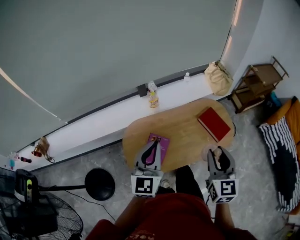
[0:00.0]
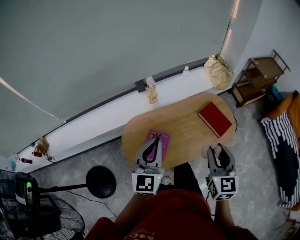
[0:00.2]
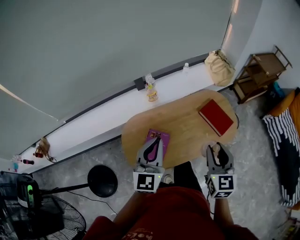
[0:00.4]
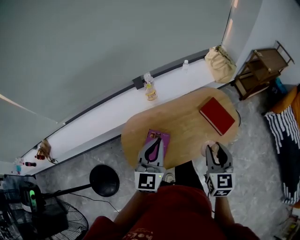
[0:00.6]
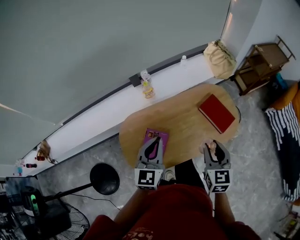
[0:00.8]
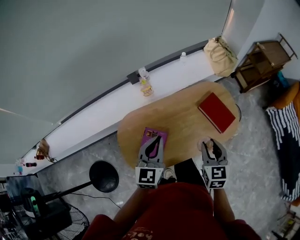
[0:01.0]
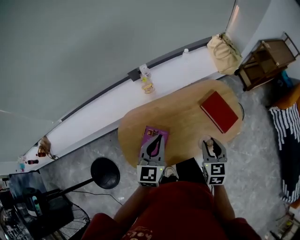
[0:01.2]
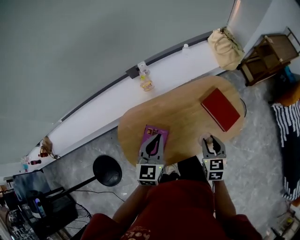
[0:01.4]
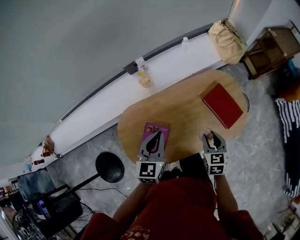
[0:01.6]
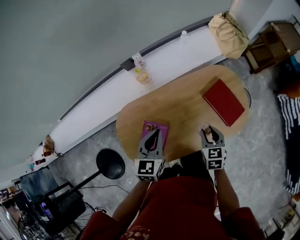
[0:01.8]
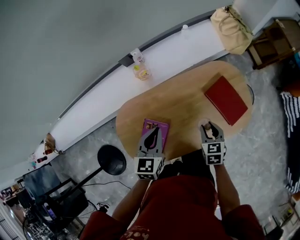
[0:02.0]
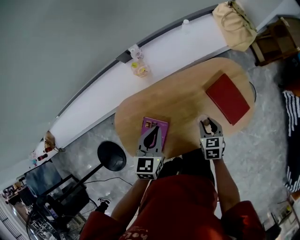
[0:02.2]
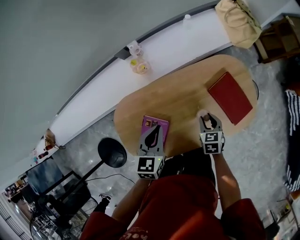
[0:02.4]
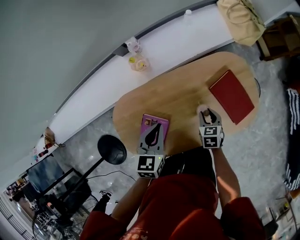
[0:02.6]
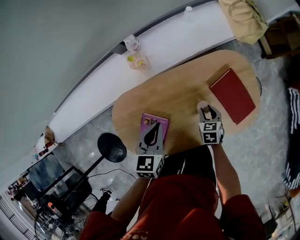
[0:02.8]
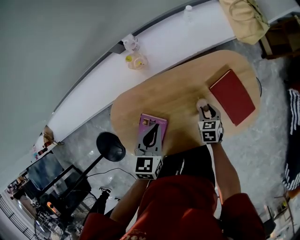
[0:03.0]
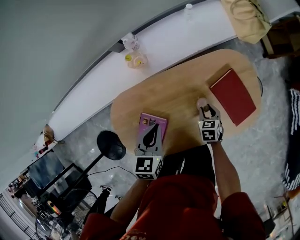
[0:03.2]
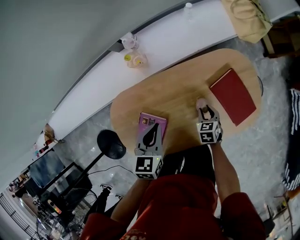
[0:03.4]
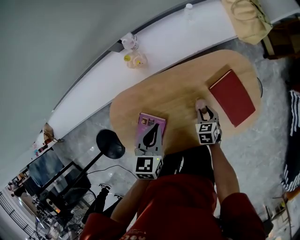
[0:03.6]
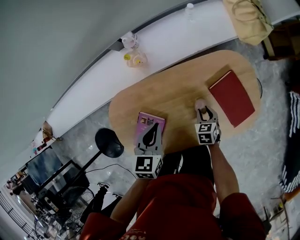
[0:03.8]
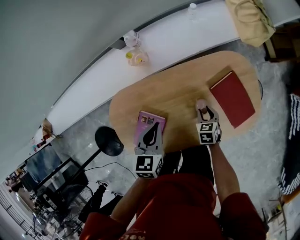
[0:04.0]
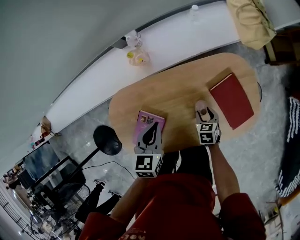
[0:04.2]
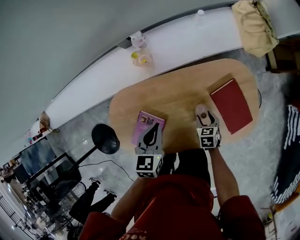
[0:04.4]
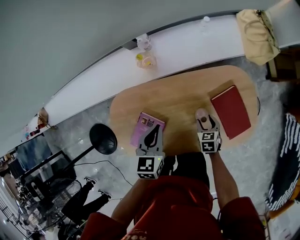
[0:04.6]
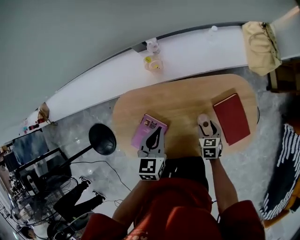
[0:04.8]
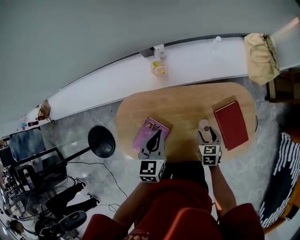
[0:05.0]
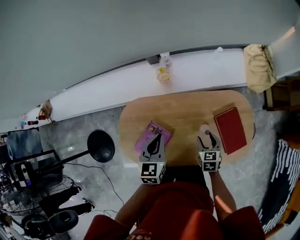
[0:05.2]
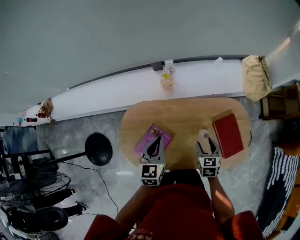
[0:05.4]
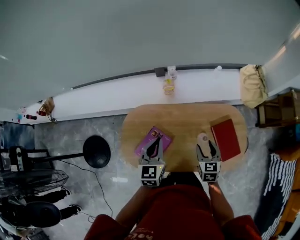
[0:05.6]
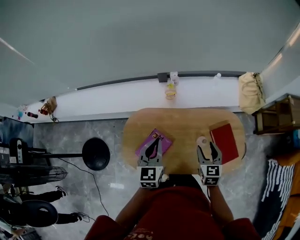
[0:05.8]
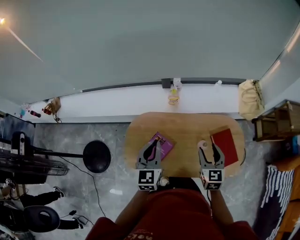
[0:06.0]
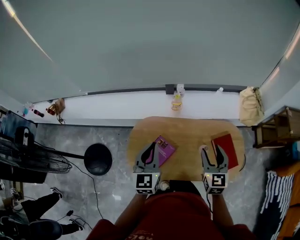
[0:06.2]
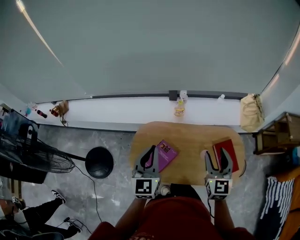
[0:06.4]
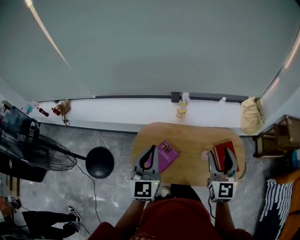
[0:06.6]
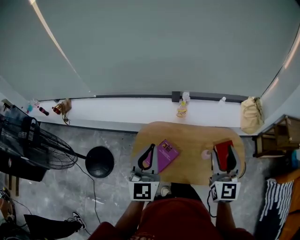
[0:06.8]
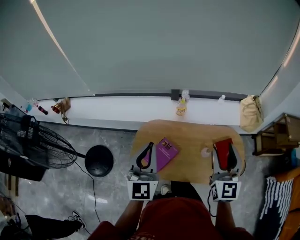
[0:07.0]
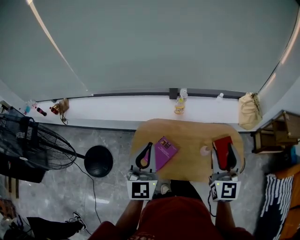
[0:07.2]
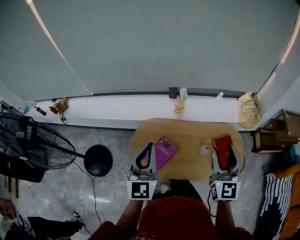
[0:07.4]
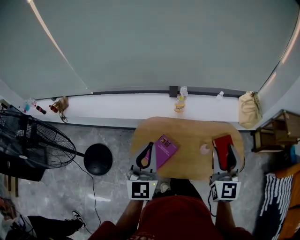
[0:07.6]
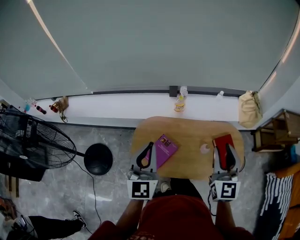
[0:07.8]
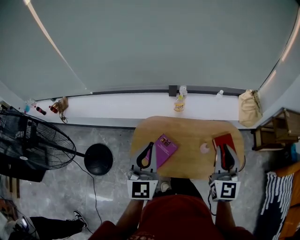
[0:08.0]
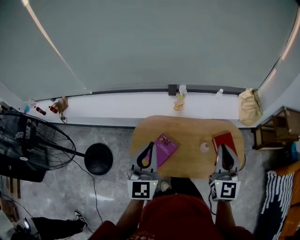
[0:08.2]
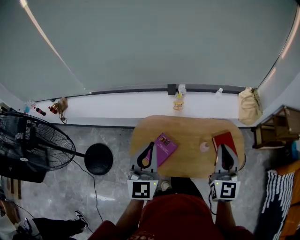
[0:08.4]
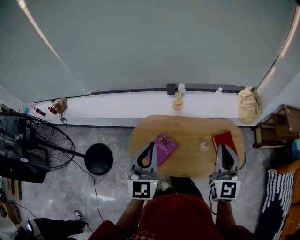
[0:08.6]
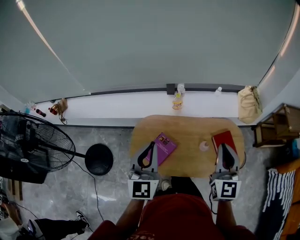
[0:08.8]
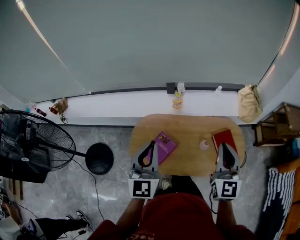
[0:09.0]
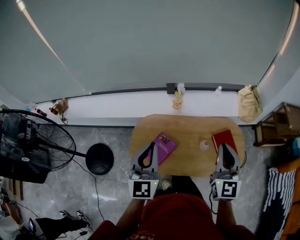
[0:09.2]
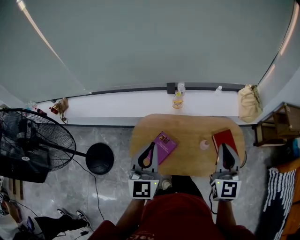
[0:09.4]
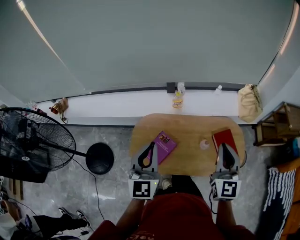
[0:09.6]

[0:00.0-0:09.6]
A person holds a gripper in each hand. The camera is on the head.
0:00.0 to 0:01.6: Both grippers travel together downward and forward, some 30 cm. The right gripper rotates about 30 degrees; the left gripper swivels roughly 30 degrees.
0:01.6 to 0:03.2: The left gripper heads downward and forward, covering approximately 15 cm. Meanwhile the right gripper moves downward and forward, approximately 25 cm.
0:03.2 to 0:04.8: The right gripper opens.
0:04.8 to 0:06.4: The right gripper heads upward, covering roughly 40 cm, and tilts its fingers approximately 50 degrees upward. Meanwhile the left gripper heads upward, backward and to the left, covering roughly 35 cm, and points its fingers roughly 30 degrees further upward.
0:06.4 to 0:08.0: The right gripper shifts roughly 10 cm upward and backward, and closes its fingers. Meanwhile the left gripper travels backward by approximately 5 cm.
0:08.0 to 0:09.6: The grippers stay close to where they were, moving slightly.

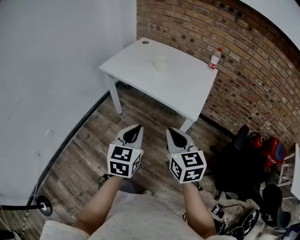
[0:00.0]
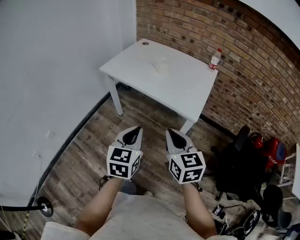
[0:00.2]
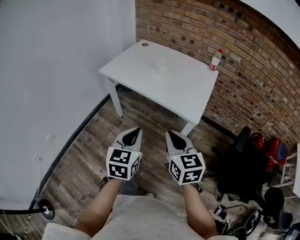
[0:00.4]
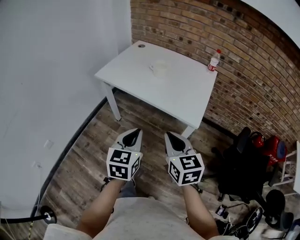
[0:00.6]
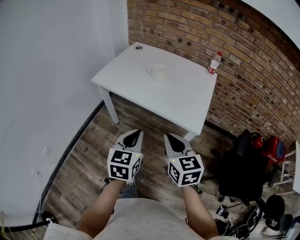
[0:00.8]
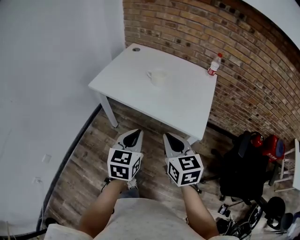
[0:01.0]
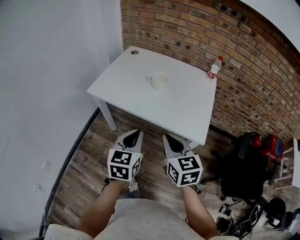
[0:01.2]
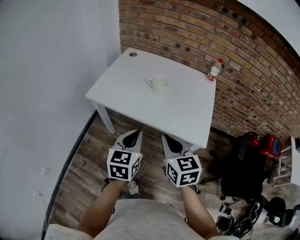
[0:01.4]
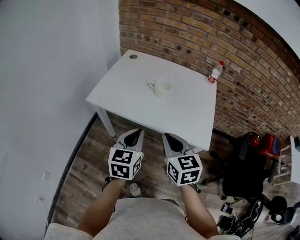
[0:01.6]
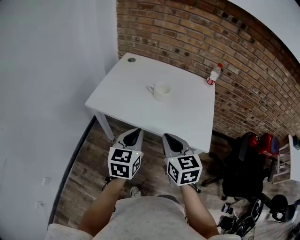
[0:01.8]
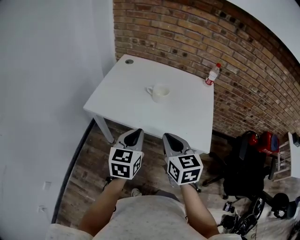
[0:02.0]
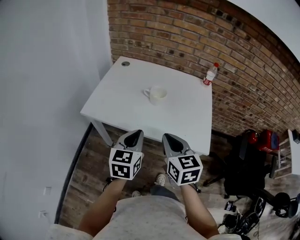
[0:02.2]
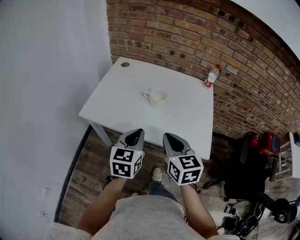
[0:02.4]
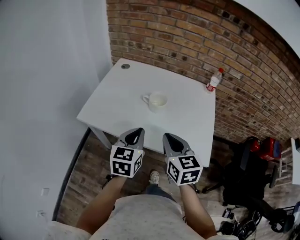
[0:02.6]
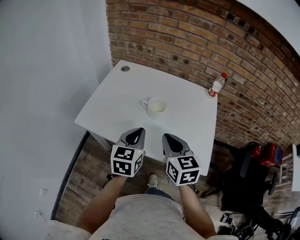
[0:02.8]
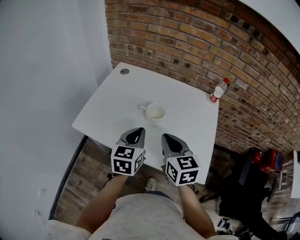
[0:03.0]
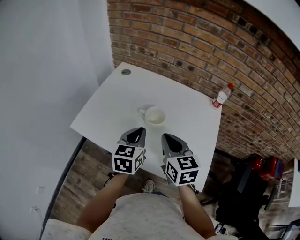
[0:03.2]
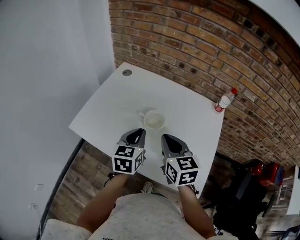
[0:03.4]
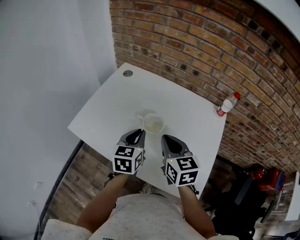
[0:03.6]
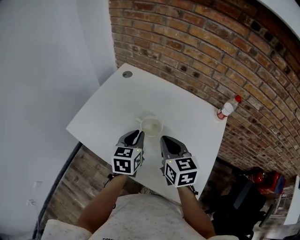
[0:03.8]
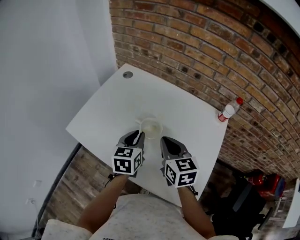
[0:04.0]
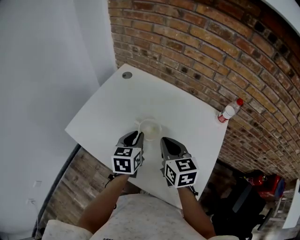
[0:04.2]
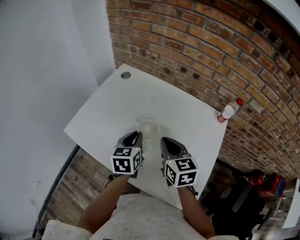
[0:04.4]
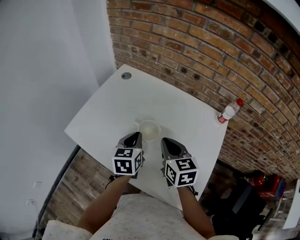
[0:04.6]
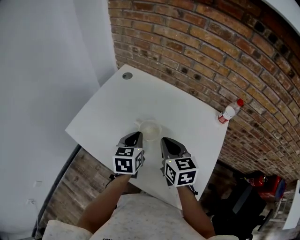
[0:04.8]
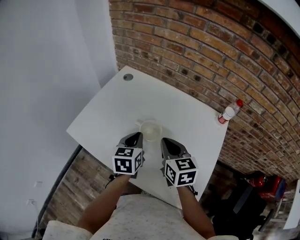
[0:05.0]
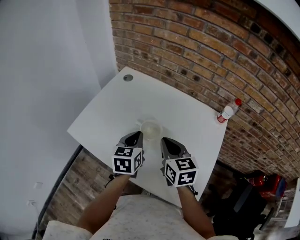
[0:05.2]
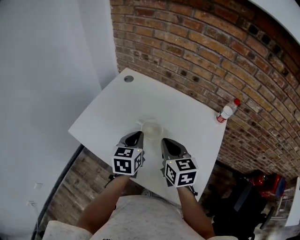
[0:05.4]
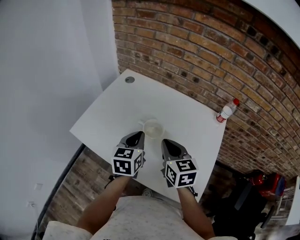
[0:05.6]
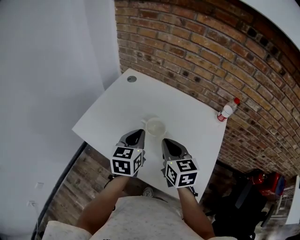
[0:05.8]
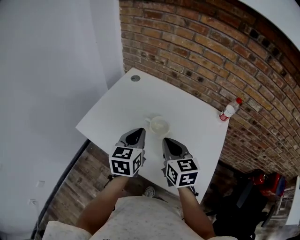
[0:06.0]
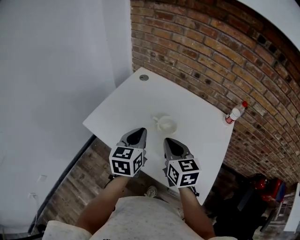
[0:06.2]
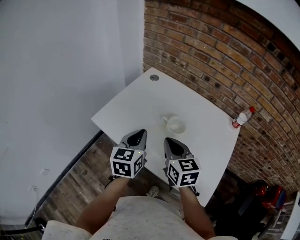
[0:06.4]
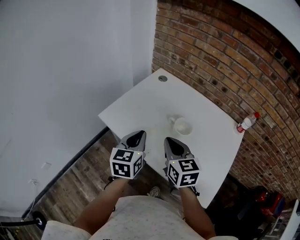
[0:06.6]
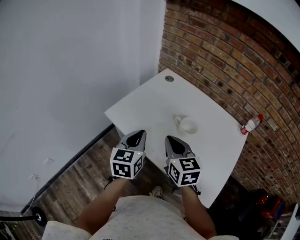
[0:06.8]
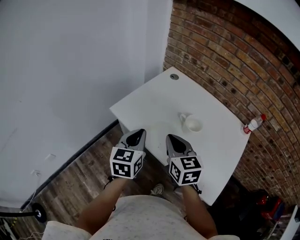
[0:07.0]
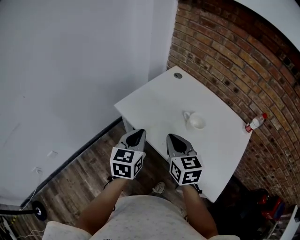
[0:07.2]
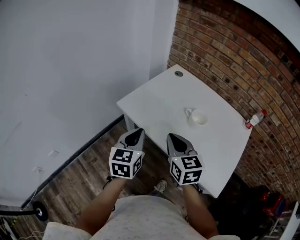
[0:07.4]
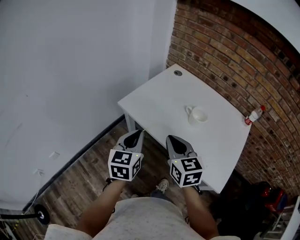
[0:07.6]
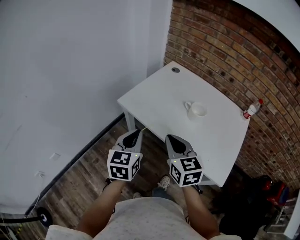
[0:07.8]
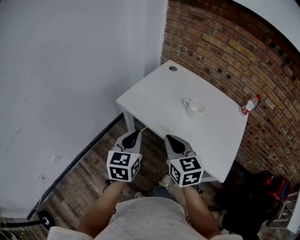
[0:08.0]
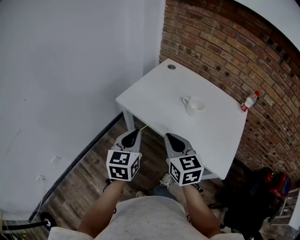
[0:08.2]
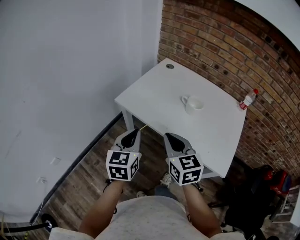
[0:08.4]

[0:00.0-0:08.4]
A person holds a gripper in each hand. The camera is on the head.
0:00.0 to 0:01.4: The left gripper moves forward, roughly 20 cm. The right gripper travels forward and to the left by roughly 20 cm.
0:01.4 to 0:02.8: Both grippers travel together forward, some 15 cm.
0:02.8 to 0:04.2: The right gripper travels forward by some 15 cm, while the left gripper is displaced forward and downward by some 15 cm.
0:04.2 to 0:05.6: The grippers make only small movements.
0:05.6 to 0:07.0: The left gripper shifts about 20 cm to the left and backward; the right gripper heads to the left, covering about 15 cm.
0:07.0 to 0:08.4: The grippers both shift backward and to the left by roughly 10 cm.

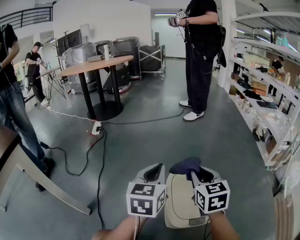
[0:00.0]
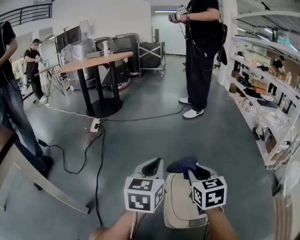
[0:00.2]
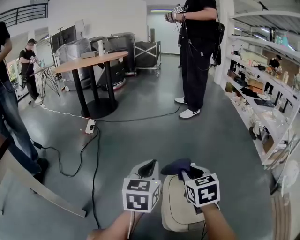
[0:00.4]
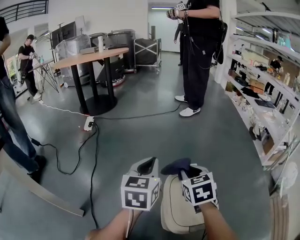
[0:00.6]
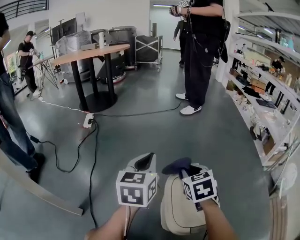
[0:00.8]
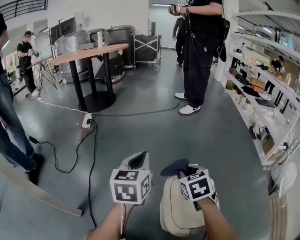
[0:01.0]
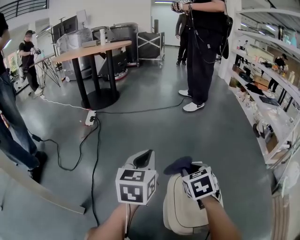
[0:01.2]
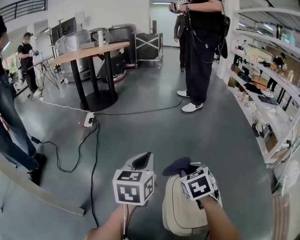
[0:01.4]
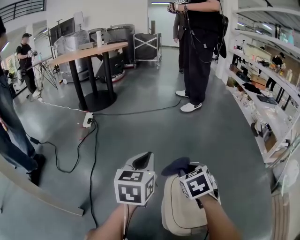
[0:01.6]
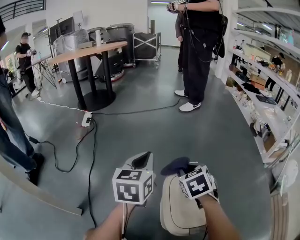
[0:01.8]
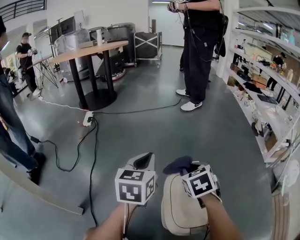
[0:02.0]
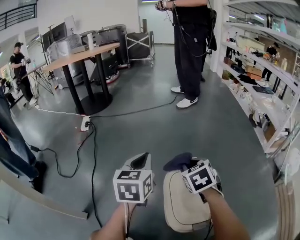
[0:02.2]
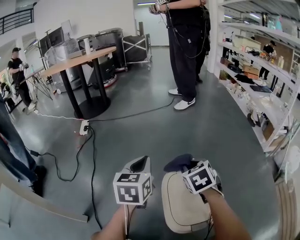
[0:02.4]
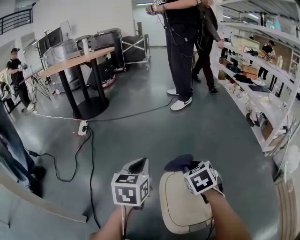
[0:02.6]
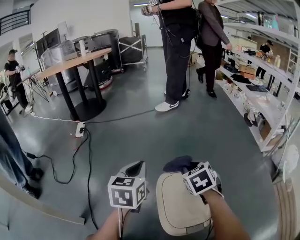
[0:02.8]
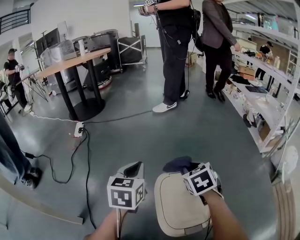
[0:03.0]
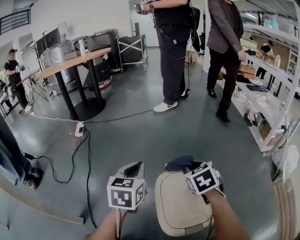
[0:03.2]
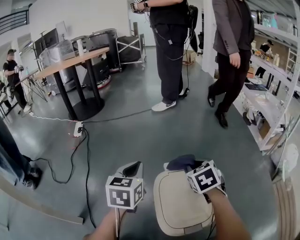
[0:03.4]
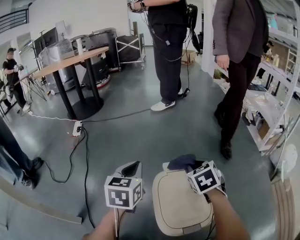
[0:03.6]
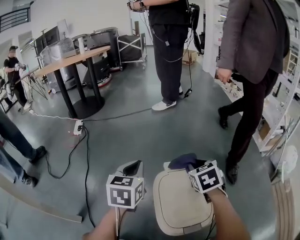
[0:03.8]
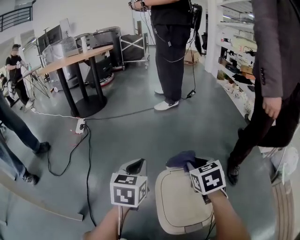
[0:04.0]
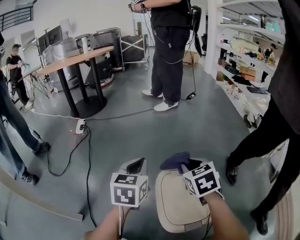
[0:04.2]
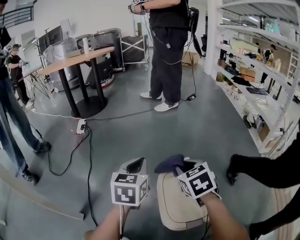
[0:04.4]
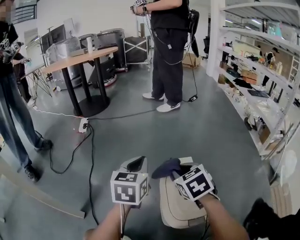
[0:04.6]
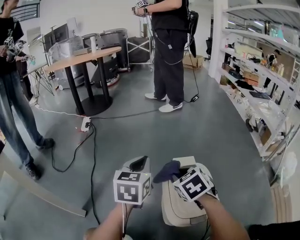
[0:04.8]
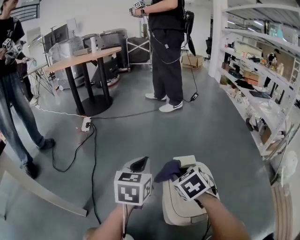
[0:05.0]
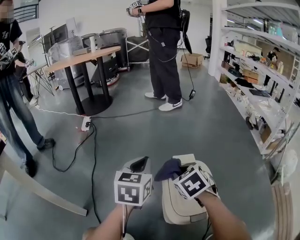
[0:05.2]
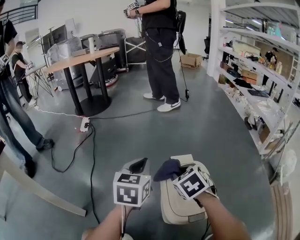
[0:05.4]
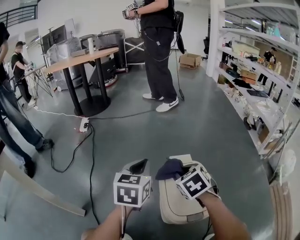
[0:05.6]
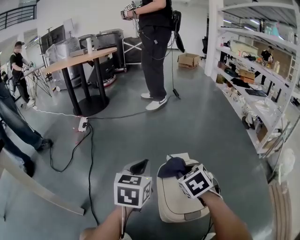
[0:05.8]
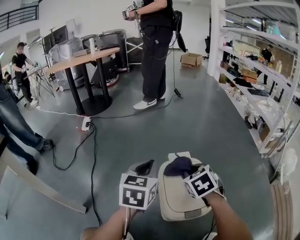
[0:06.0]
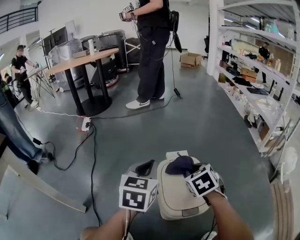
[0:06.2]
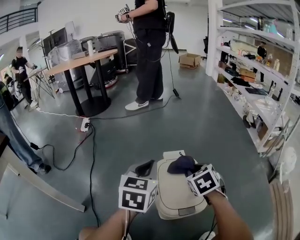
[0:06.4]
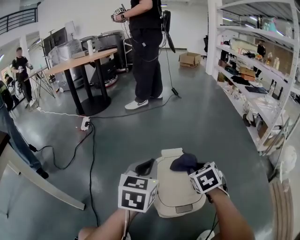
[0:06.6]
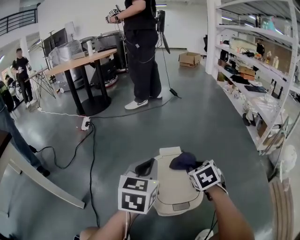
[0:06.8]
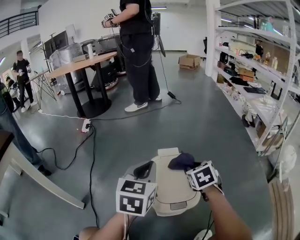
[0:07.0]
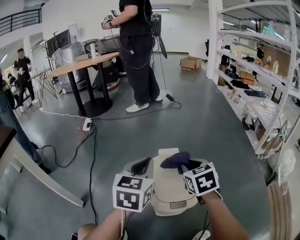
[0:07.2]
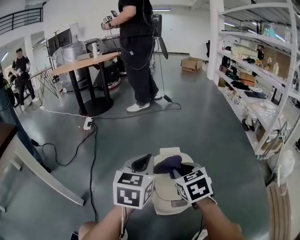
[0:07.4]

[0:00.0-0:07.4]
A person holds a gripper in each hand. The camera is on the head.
0:00.0 to 0:01.4: The left gripper shifts some 10 cm forward and to the left; the right gripper shifts some 15 cm downward and forward, and rotates roughly 30 degrees.
0:01.4 to 0:03.0: The right gripper is displaced to the right by roughly 5 cm.
0:03.0 to 0:04.4: The right gripper heads to the left, covering roughly 5 cm.
0:04.4 to 0:06.0: The two grippers go roughly 5 cm backward.
0:06.0 to 0:07.4: The two grippers go roughly 10 cm backward and upward. The right gripper moves about 10 cm to the right and comes back.
